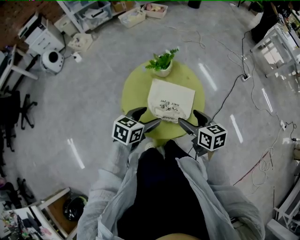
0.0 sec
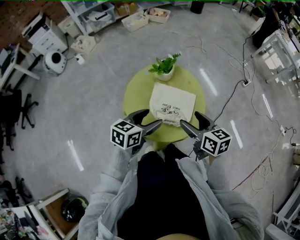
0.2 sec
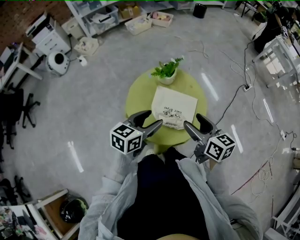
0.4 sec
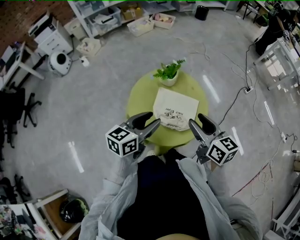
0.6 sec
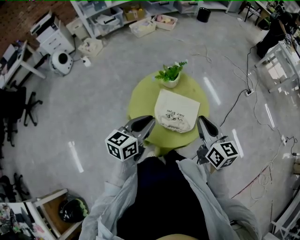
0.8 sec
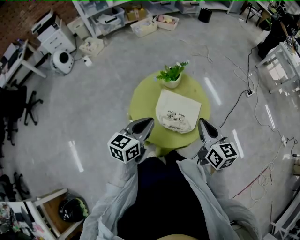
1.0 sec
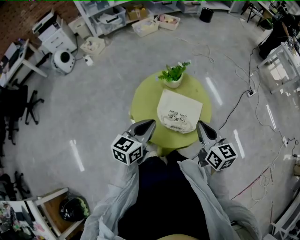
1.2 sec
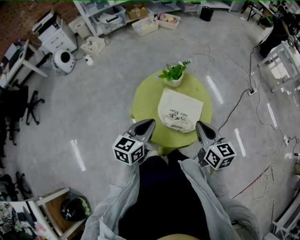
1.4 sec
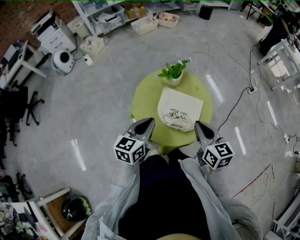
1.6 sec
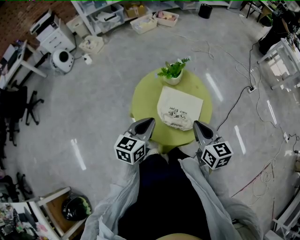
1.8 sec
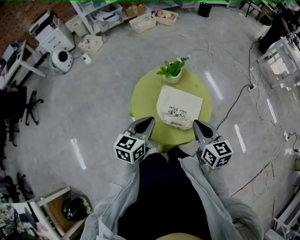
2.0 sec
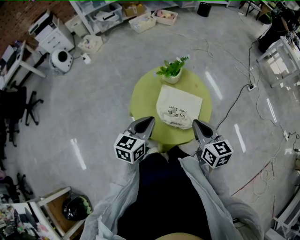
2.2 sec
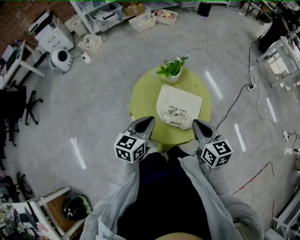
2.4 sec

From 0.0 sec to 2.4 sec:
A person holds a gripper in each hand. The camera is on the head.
From 0.0 sec to 1.2 sec: Both grippers travel together upward, about 10 cm. The left gripper turns by roughly 20 degrees, and closes, while the right gripper closes.
From 1.2 sec to 2.4 sec: There are only small adjustments of the grippers.

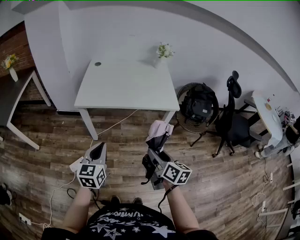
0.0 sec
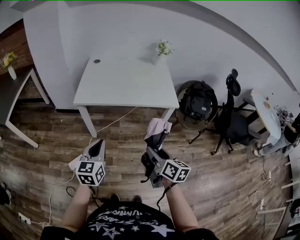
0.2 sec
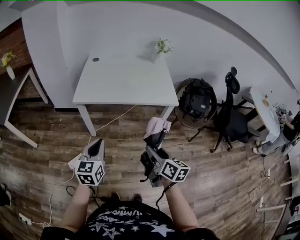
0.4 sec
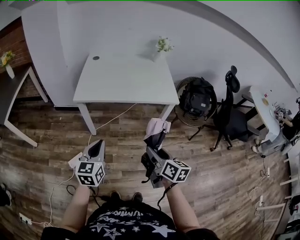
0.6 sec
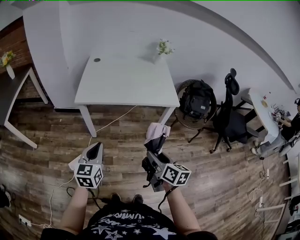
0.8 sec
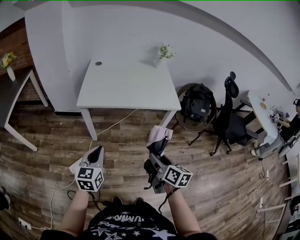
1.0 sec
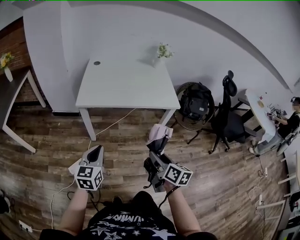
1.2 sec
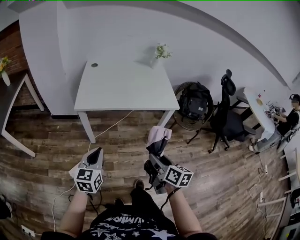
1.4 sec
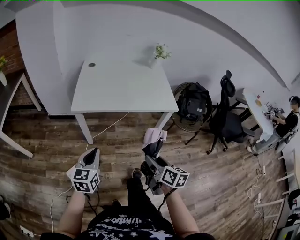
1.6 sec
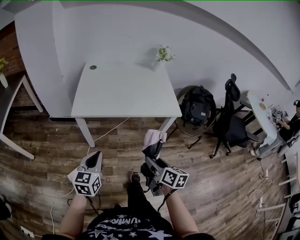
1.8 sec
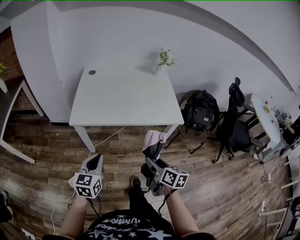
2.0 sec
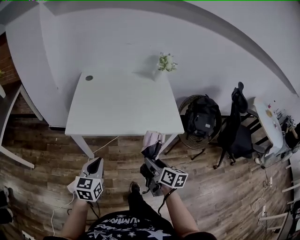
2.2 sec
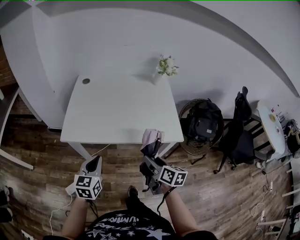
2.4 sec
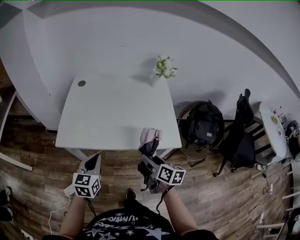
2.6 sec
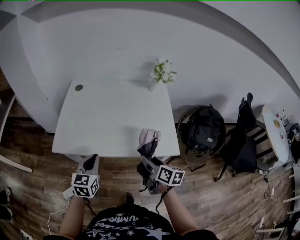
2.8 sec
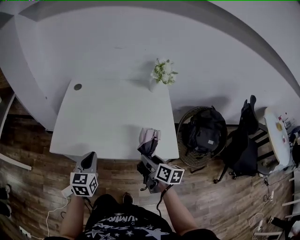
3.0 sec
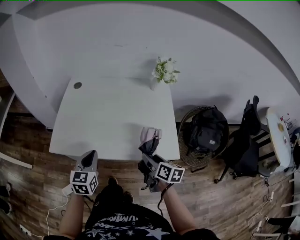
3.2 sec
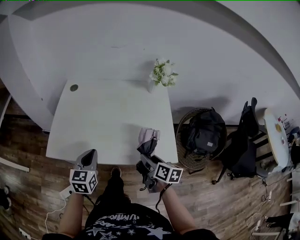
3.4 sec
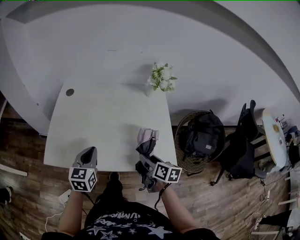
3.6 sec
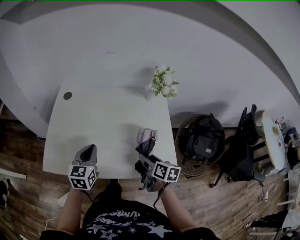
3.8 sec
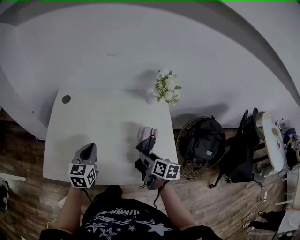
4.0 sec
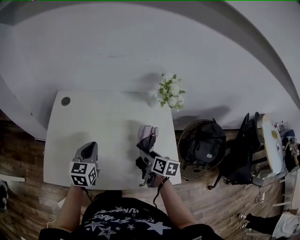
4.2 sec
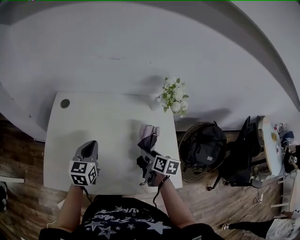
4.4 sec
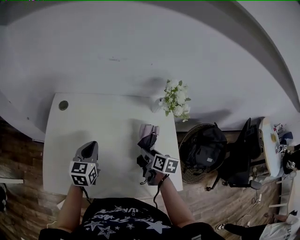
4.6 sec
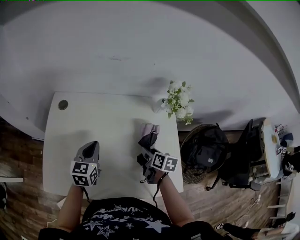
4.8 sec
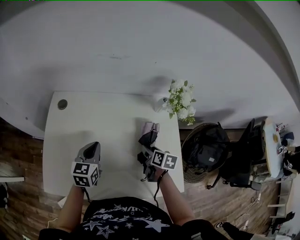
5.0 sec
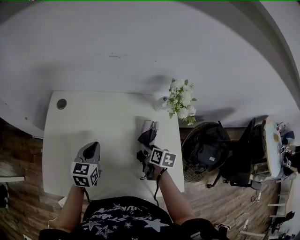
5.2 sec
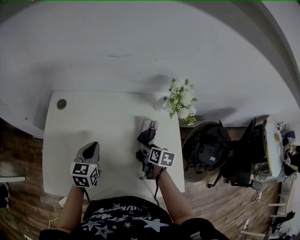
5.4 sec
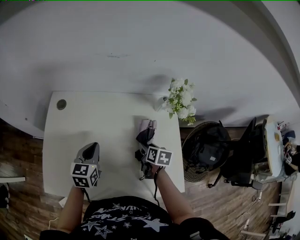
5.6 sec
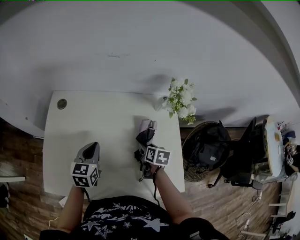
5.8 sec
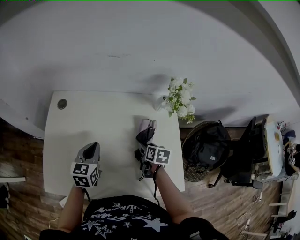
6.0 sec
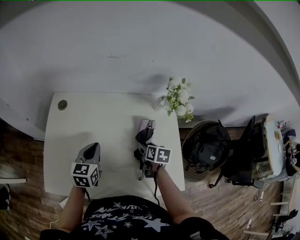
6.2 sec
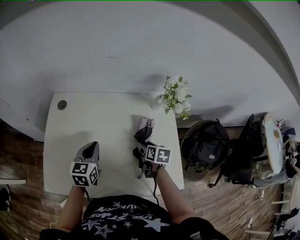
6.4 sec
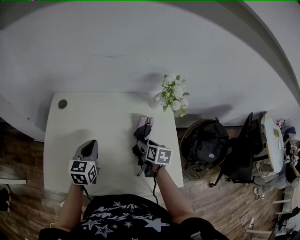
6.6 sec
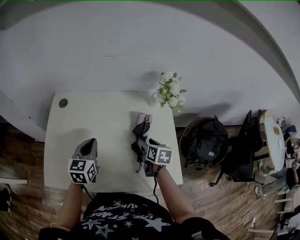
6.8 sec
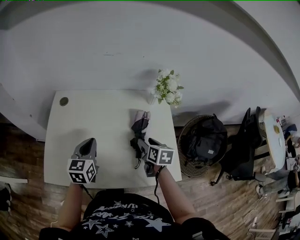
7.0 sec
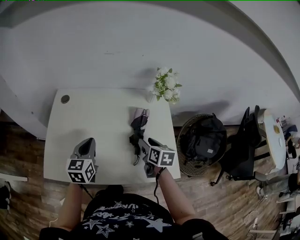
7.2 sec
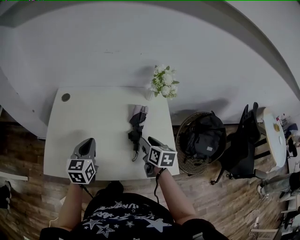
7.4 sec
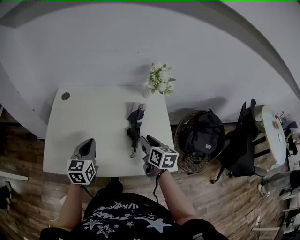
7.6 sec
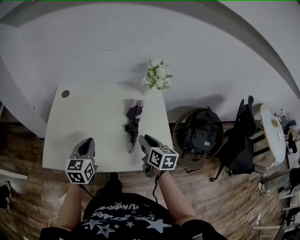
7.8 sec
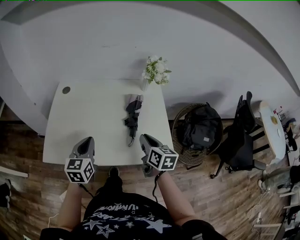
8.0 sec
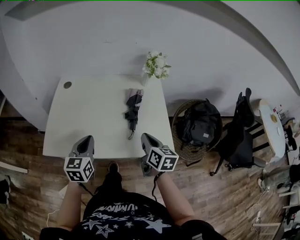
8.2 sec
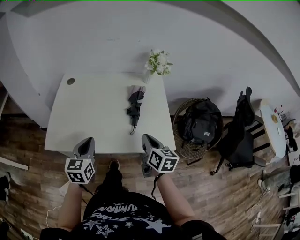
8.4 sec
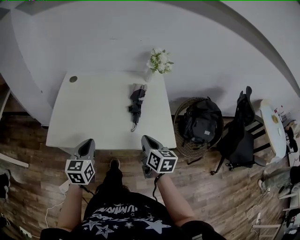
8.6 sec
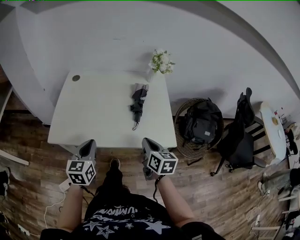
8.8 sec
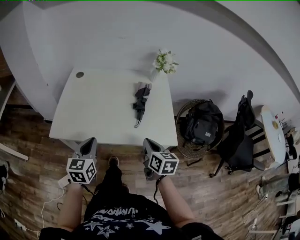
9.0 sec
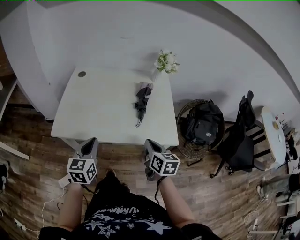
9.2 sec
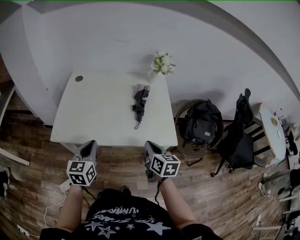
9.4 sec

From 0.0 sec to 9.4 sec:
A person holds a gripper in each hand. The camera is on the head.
From 0.0 sec to 1.6 sec: Both grippers move to the left, approximately 5 cm.
From 1.6 sec to 3.2 sec: The grippers both shift forward and to the right by about 35 cm.
From 3.2 sec to 4.8 sec: Both grippers travel together forward, about 25 cm.
From 4.8 sec to 6.2 sec: There are only small adjustments of the grippers.
From 6.2 sec to 7.8 sec: Both grippers travel together backward and upward, about 20 cm. The right gripper turns by roughly 30 degrees, and closes its fingers.
From 7.8 sec to 9.4 sec: The grippers both shift backward by roughly 15 cm. The right gripper closes up.

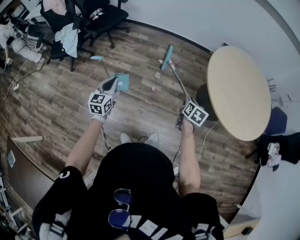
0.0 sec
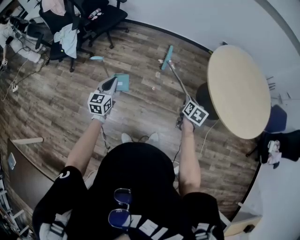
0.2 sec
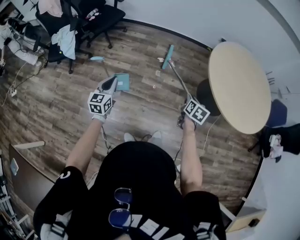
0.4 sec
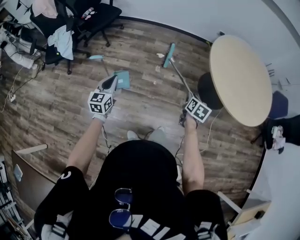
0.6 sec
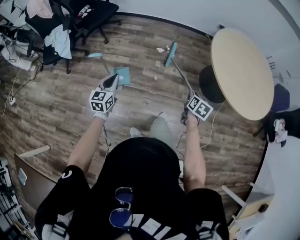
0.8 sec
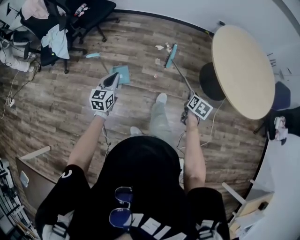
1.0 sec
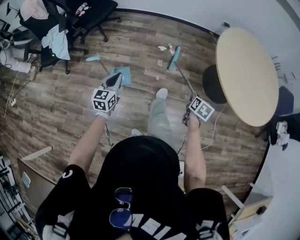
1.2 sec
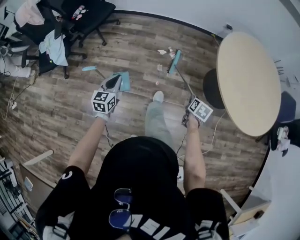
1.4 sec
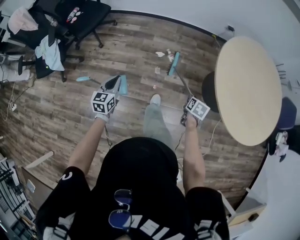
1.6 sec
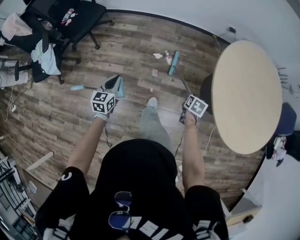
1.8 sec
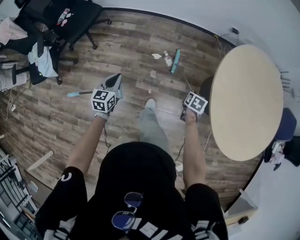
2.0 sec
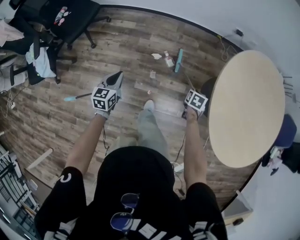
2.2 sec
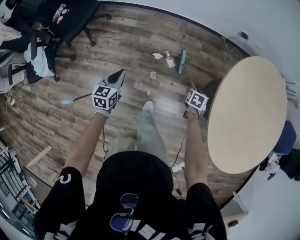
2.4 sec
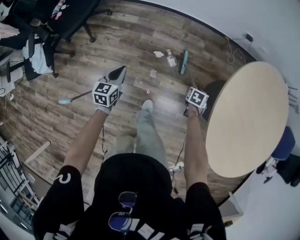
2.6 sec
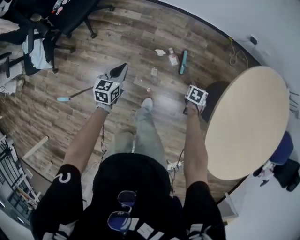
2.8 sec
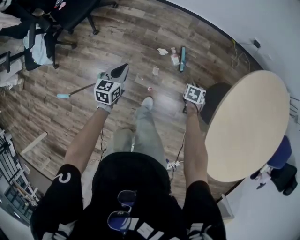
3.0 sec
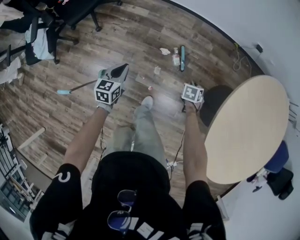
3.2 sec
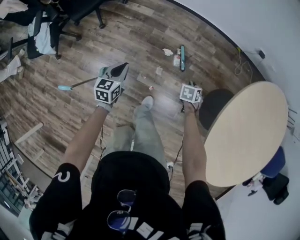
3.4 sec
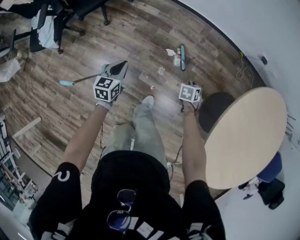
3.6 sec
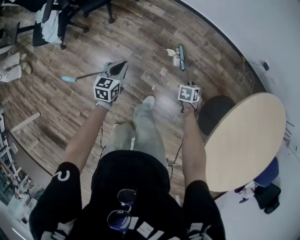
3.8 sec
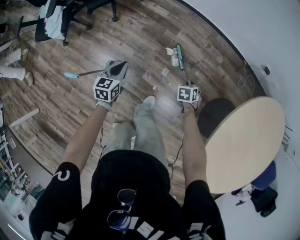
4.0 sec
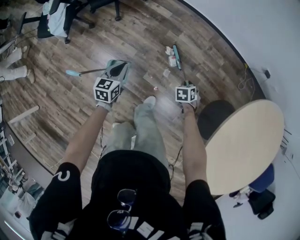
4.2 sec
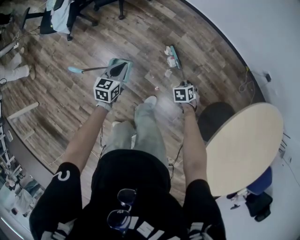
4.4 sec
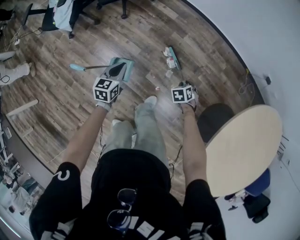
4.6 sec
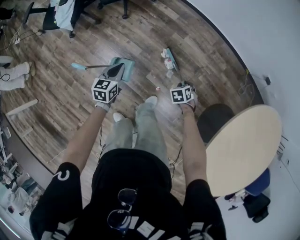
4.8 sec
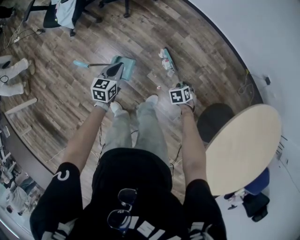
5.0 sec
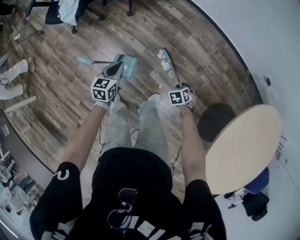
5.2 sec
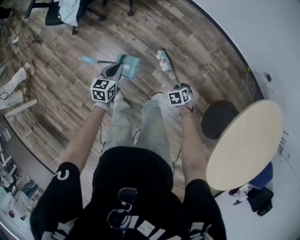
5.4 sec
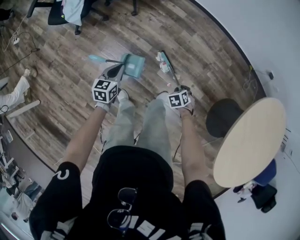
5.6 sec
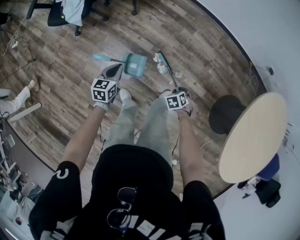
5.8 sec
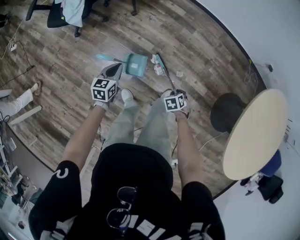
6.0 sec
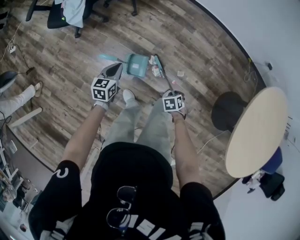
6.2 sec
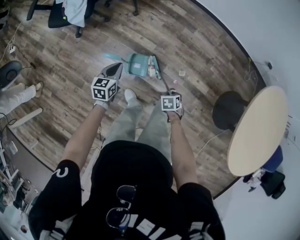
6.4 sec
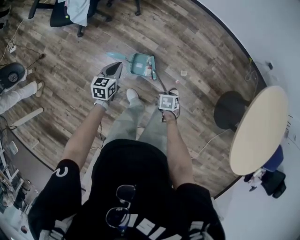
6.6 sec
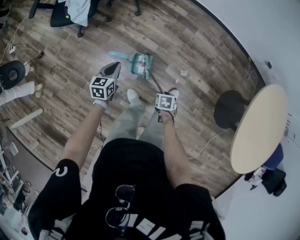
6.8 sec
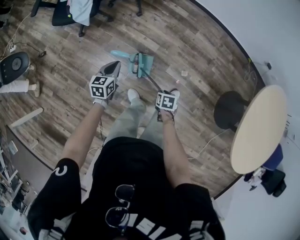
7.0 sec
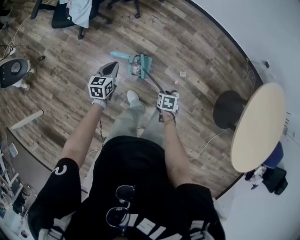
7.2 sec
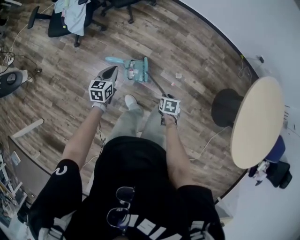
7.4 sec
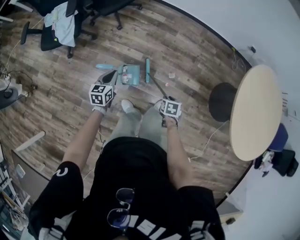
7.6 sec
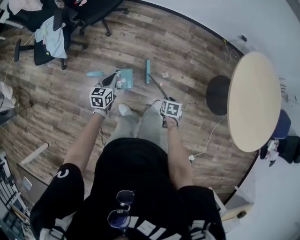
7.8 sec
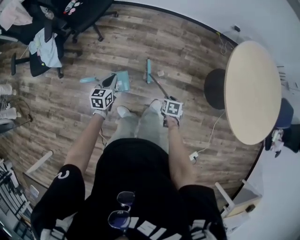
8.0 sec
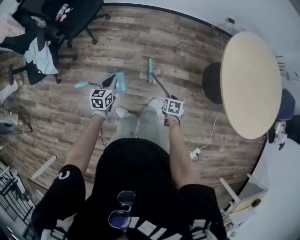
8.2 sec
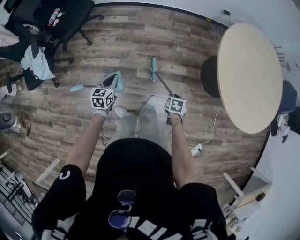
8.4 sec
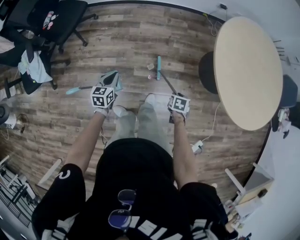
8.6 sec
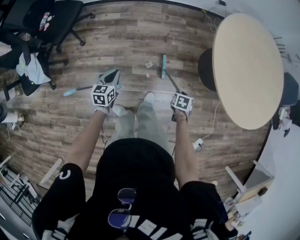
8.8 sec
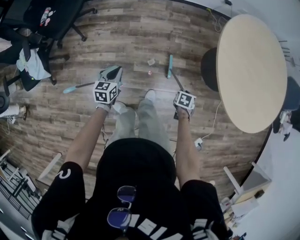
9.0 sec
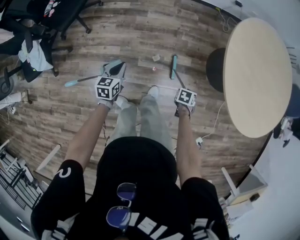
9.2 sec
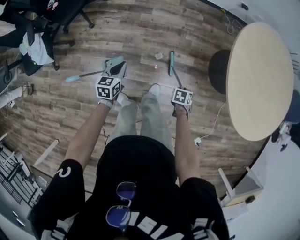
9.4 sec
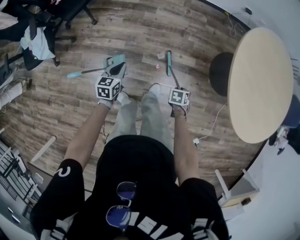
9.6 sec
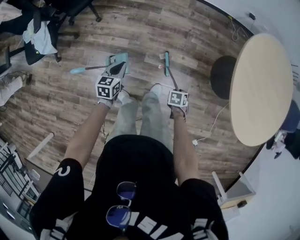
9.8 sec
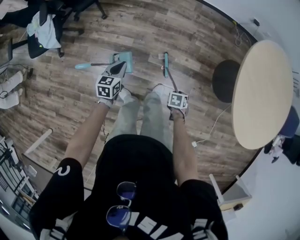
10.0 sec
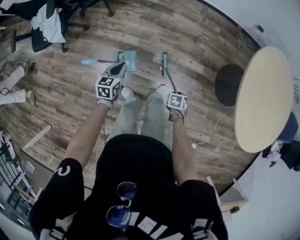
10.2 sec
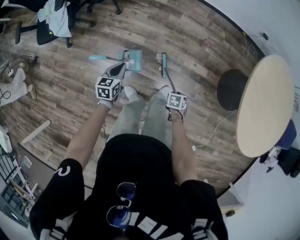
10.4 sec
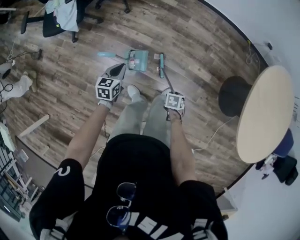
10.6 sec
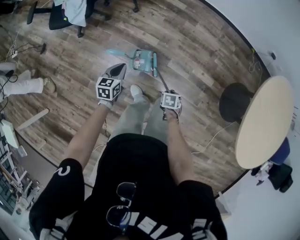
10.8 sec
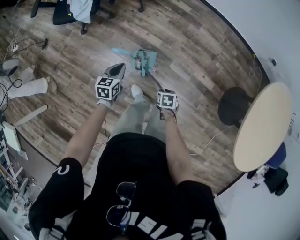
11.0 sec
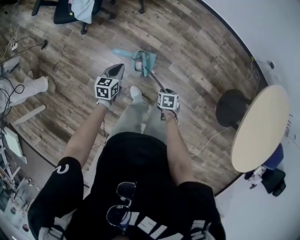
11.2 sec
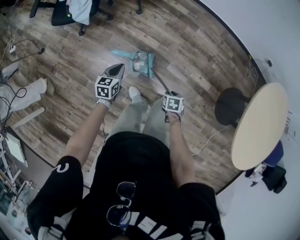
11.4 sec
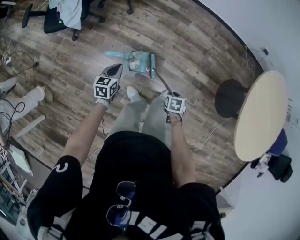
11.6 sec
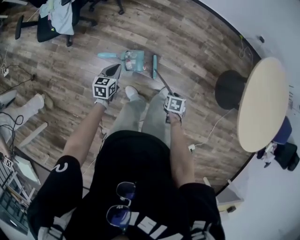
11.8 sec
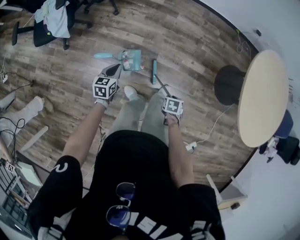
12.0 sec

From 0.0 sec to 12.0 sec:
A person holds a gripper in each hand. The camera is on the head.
From 0.0 sec to 1.6 sec: The grippers both shift forward and downward by approximately 25 cm.
From 1.6 sec to 3.0 sec: The left gripper shifts by approximately 35 cm, while the right gripper shifts by approximately 40 cm, and swivels about 30 degrees.
From 3.0 sec to 4.4 sec: The right gripper ends up approximately 20 cm from where it was, and rotates around the line of its fingers by approximately 40 degrees, counterclockwise from behind, while the left gripper shifts by some 15 cm.
From 4.4 sec to 6.0 sec: The left gripper changes place by roughly 25 cm, while the right gripper changes place by approximately 30 cm.
From 6.0 sec to 7.6 sec: The right gripper moves roughly 15 cm, and rolls clockwise, seen from behind, by some 40 degrees.
From 7.6 sec to 9.0 sec: The left gripper moves some 35 cm, and swivels about 20 degrees. Meanwhile the right gripper changes place by some 35 cm, and changes its angle by about 30 degrees.
From 9.0 sec to 10.4 sec: The left gripper moves approximately 25 cm, while the right gripper ends up approximately 20 cm from where it was, and rotates about 30 degrees.
